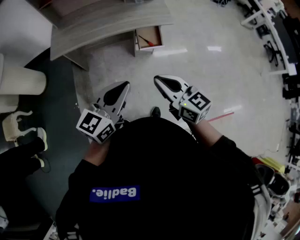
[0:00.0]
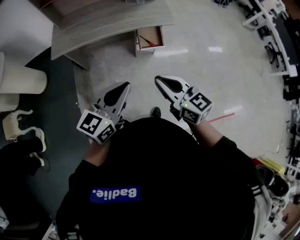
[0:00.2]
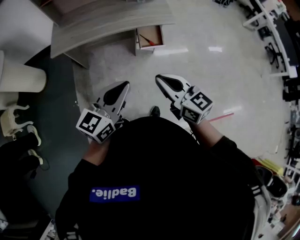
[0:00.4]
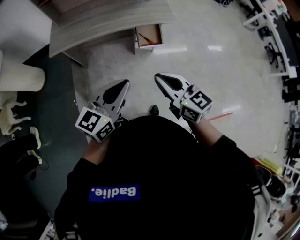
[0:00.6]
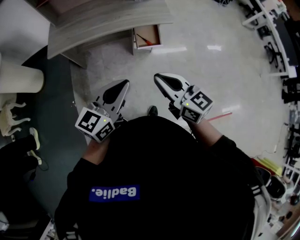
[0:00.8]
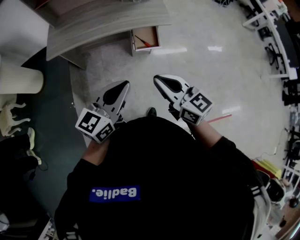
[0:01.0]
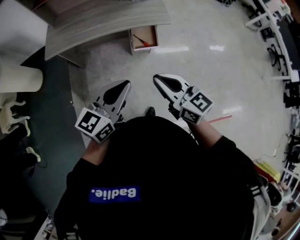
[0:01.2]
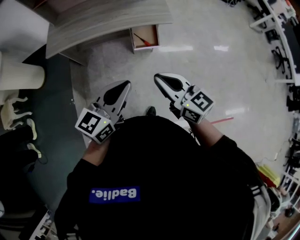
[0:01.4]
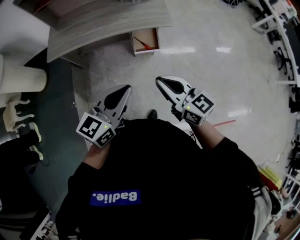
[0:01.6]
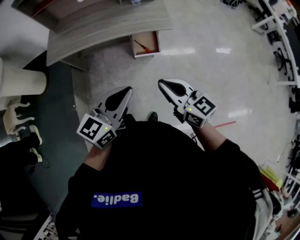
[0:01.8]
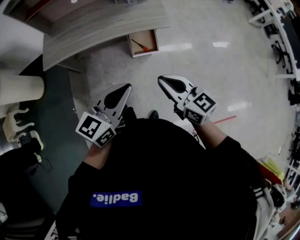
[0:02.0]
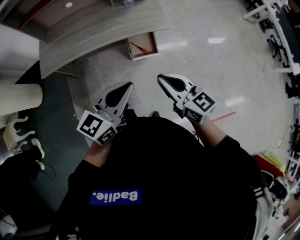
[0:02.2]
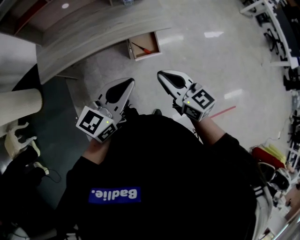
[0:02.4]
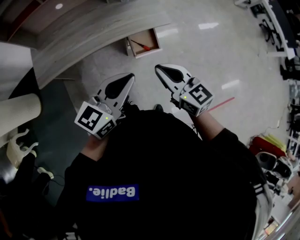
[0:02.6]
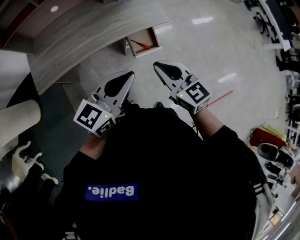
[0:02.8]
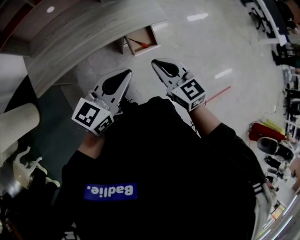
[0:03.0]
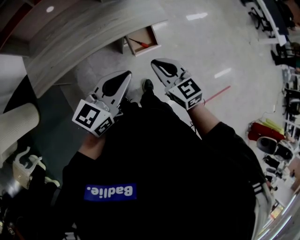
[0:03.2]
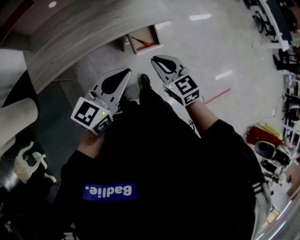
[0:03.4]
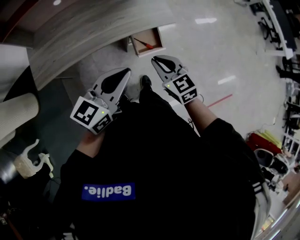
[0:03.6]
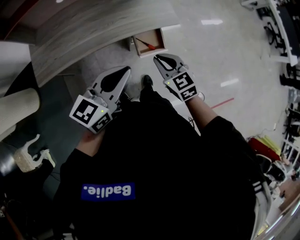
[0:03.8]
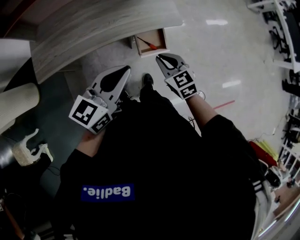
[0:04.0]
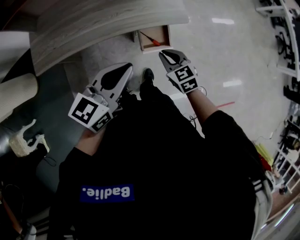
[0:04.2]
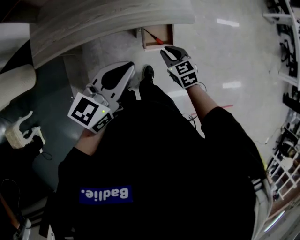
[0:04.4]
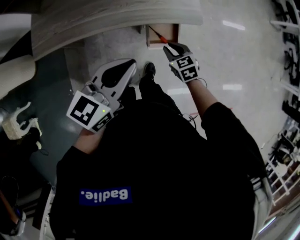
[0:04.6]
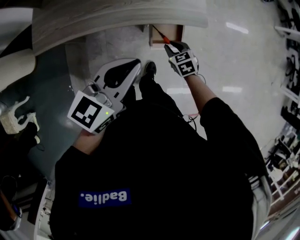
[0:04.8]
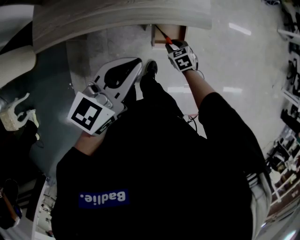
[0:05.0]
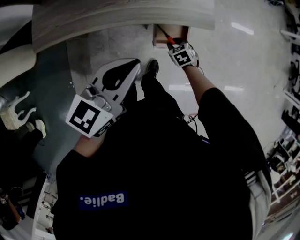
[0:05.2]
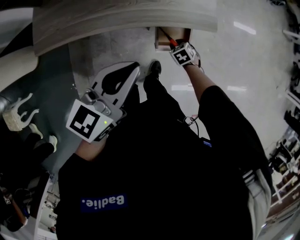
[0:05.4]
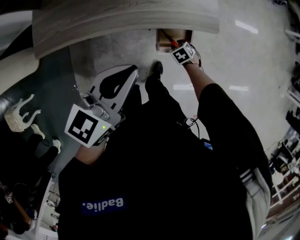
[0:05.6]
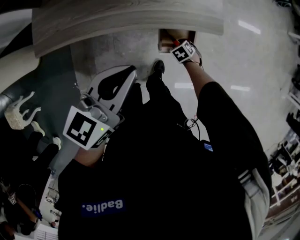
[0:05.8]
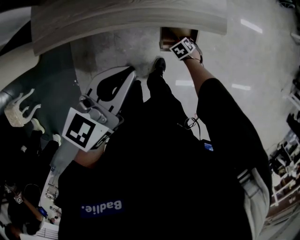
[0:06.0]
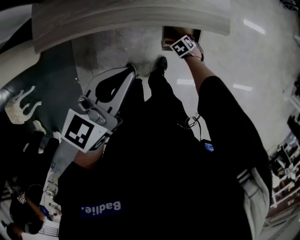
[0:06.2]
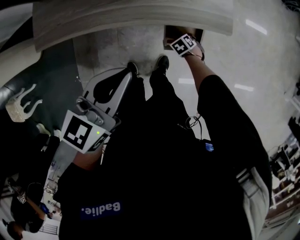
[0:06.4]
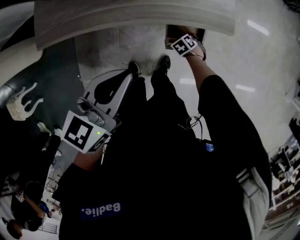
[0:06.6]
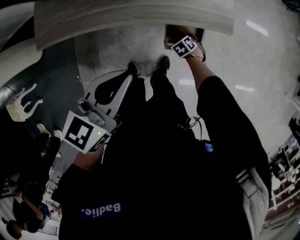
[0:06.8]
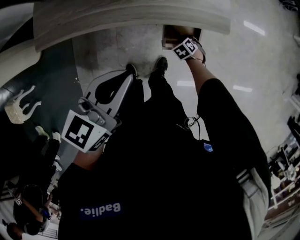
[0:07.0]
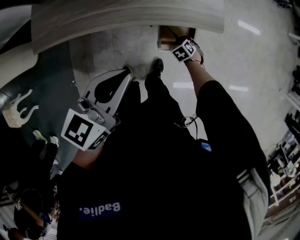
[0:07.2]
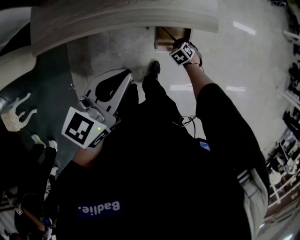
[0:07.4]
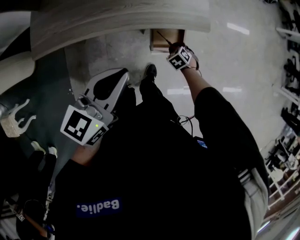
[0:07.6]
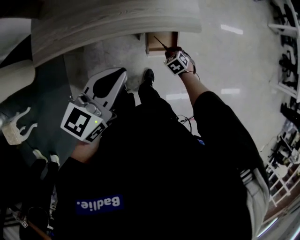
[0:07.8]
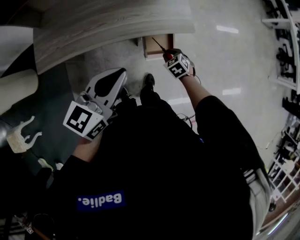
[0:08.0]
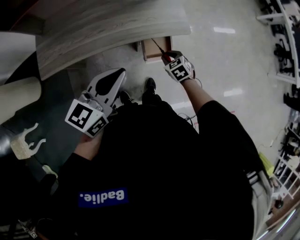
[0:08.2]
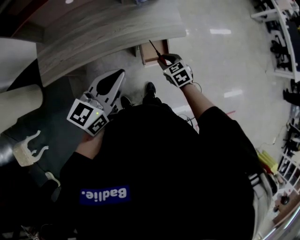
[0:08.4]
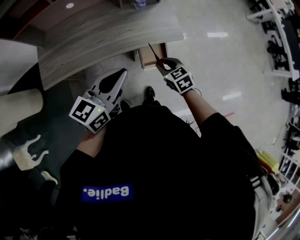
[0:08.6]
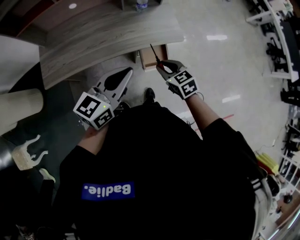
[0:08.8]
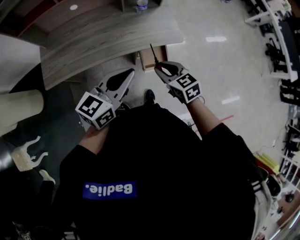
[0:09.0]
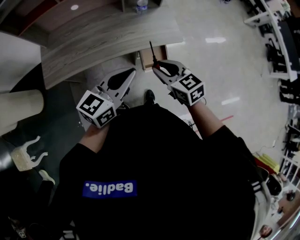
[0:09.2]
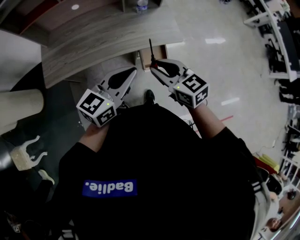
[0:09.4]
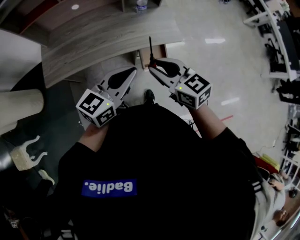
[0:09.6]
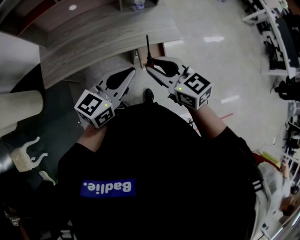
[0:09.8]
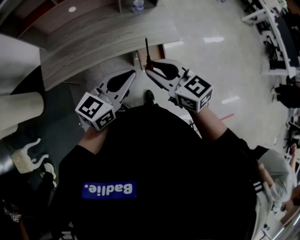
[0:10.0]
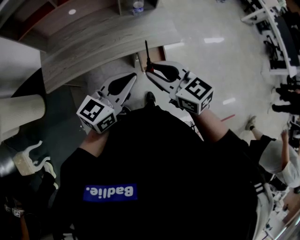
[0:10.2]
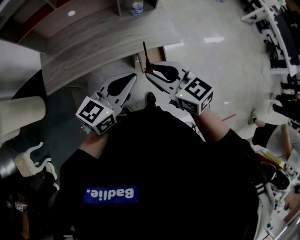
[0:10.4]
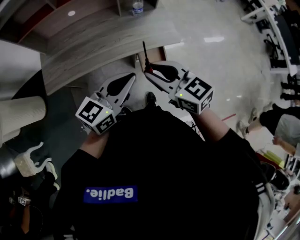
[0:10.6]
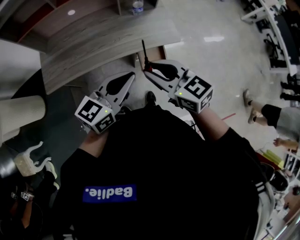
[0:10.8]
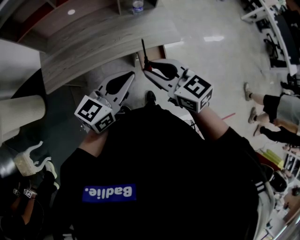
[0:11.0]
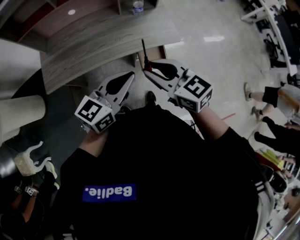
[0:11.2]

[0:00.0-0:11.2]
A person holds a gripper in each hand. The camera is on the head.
0:00.0 to 0:01.6: The two grippers go about 10 cm to the right and forward.
0:01.6 to 0:03.2: The left gripper is displaced to the left and forward by roughly 20 cm, and swivels about 20 degrees. Meanwhile the right gripper is displaced to the left, forward and downward by about 20 cm, and swivels some 30 degrees.
0:03.2 to 0:04.8: The right gripper moves downward and forward, some 30 cm, and turns by approximately 30 degrees, while the left gripper moves forward, approximately 10 cm.
0:04.8 to 0:06.4: The left gripper moves approximately 5 cm. Meanwhile the right gripper is displaced downward by some 20 cm, and turns by roughly 30 degrees.
0:06.4 to 0:08.0: The left gripper shifts roughly 5 cm upward, while the right gripper heads upward, covering about 20 cm, and changes its angle by approximately 20 degrees.
0:08.0 to 0:09.6: The right gripper travels upward by roughly 35 cm, and angles its fingers upward, by approximately 40 degrees.
0:09.6 to 0:11.2: The grippers stay close to where they were, moving slightly.

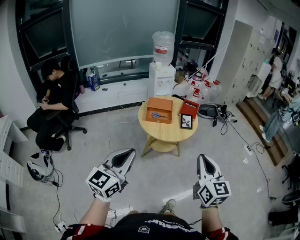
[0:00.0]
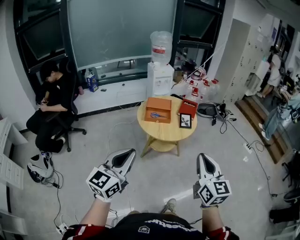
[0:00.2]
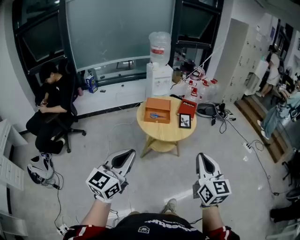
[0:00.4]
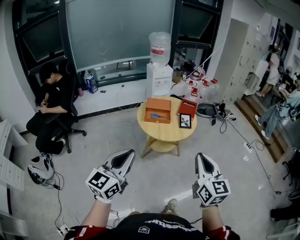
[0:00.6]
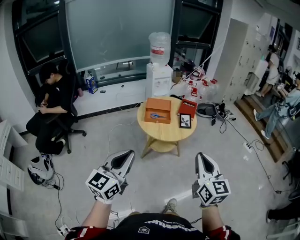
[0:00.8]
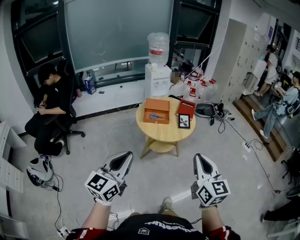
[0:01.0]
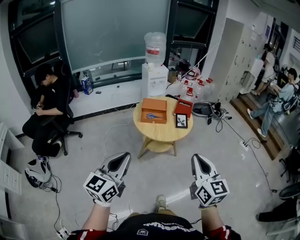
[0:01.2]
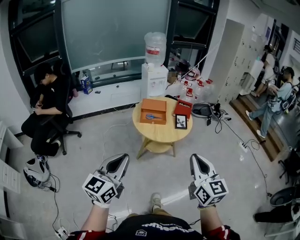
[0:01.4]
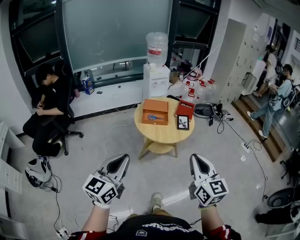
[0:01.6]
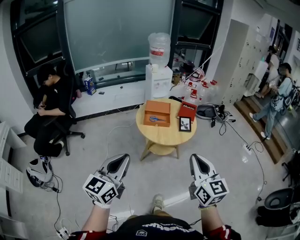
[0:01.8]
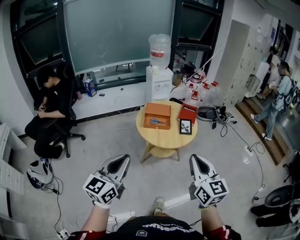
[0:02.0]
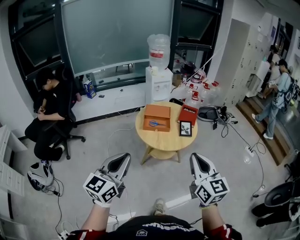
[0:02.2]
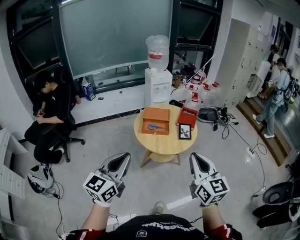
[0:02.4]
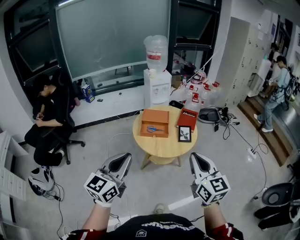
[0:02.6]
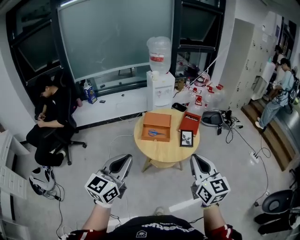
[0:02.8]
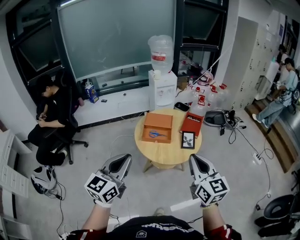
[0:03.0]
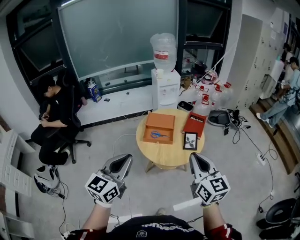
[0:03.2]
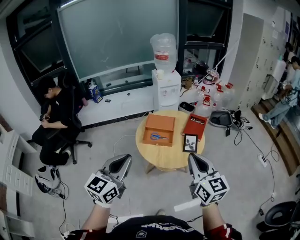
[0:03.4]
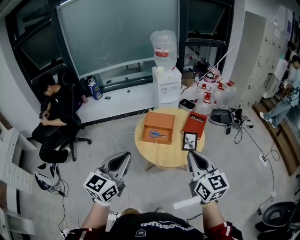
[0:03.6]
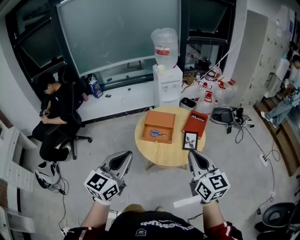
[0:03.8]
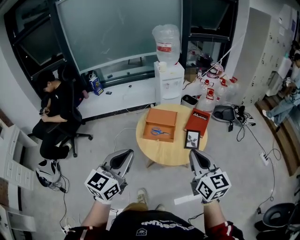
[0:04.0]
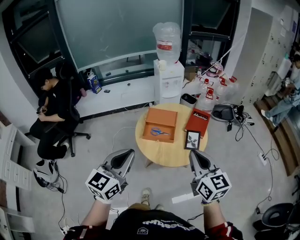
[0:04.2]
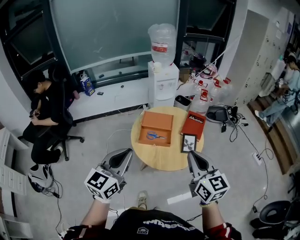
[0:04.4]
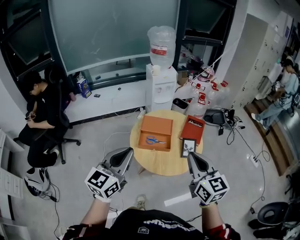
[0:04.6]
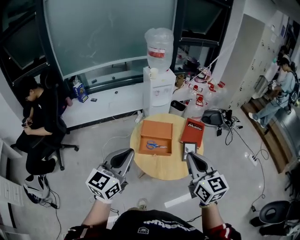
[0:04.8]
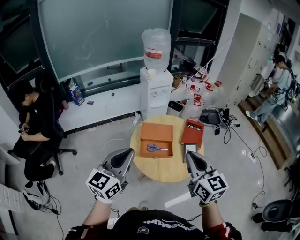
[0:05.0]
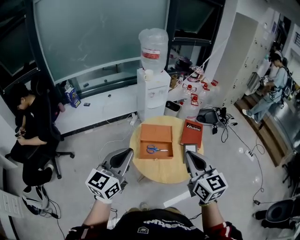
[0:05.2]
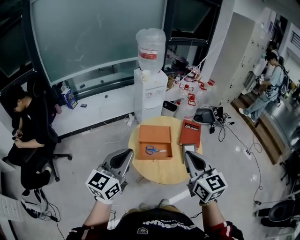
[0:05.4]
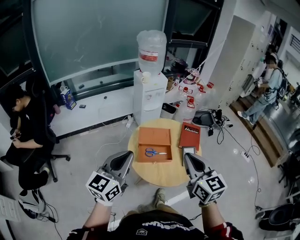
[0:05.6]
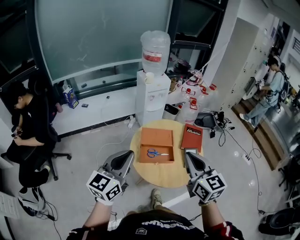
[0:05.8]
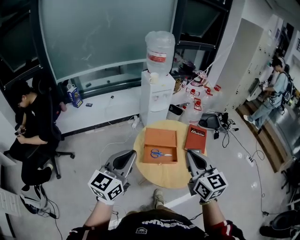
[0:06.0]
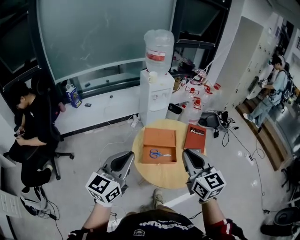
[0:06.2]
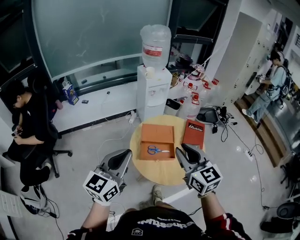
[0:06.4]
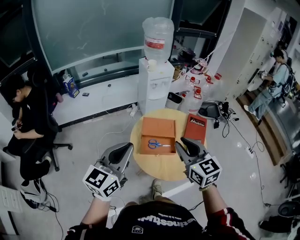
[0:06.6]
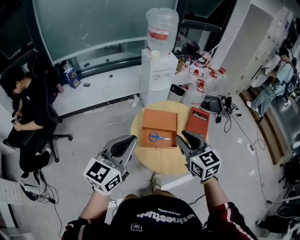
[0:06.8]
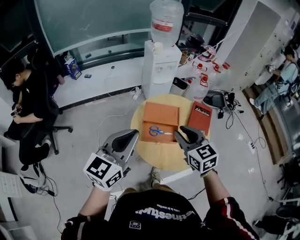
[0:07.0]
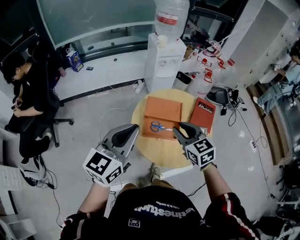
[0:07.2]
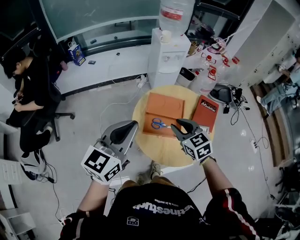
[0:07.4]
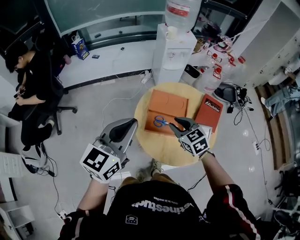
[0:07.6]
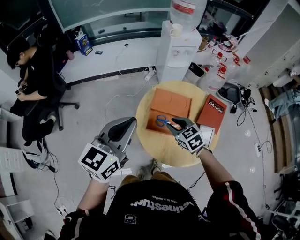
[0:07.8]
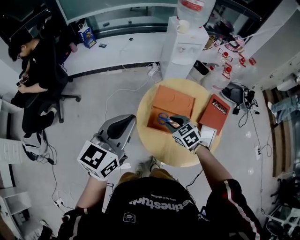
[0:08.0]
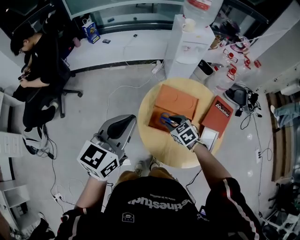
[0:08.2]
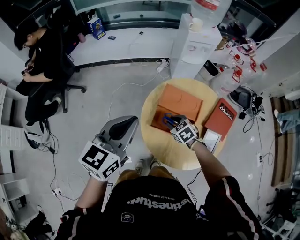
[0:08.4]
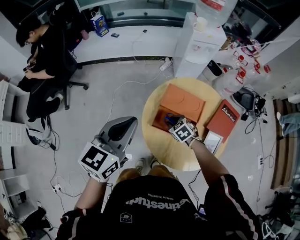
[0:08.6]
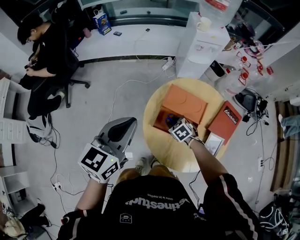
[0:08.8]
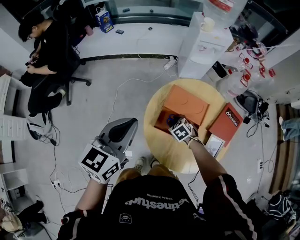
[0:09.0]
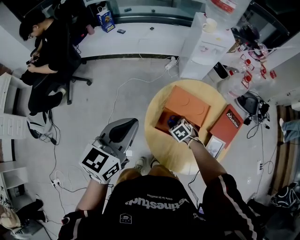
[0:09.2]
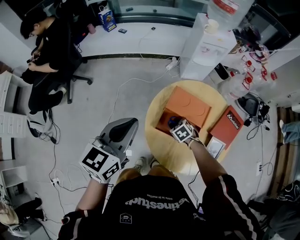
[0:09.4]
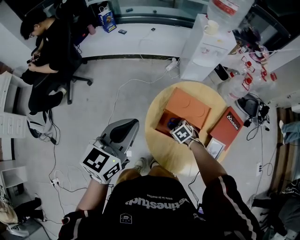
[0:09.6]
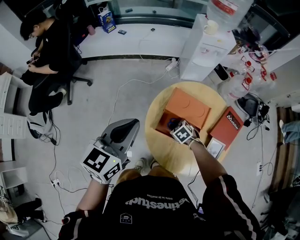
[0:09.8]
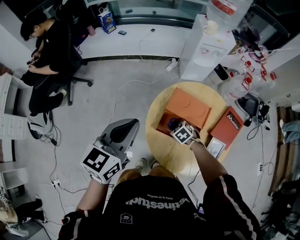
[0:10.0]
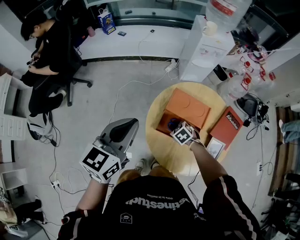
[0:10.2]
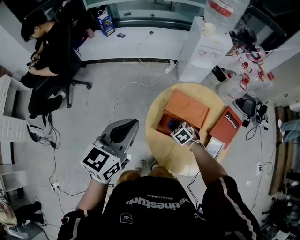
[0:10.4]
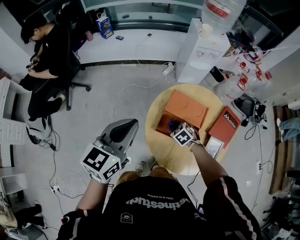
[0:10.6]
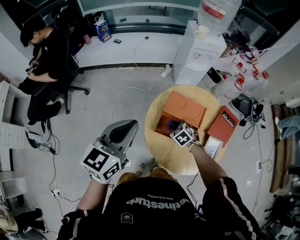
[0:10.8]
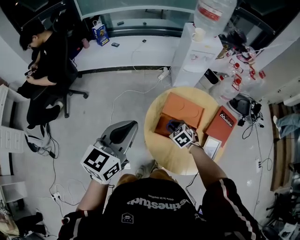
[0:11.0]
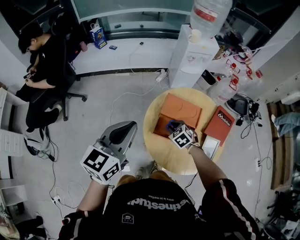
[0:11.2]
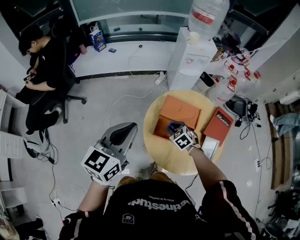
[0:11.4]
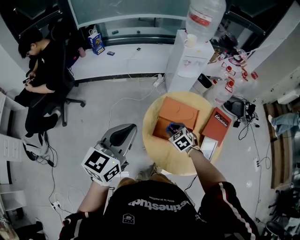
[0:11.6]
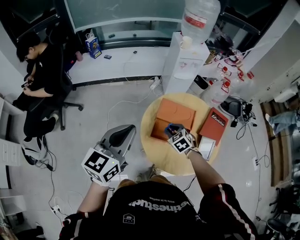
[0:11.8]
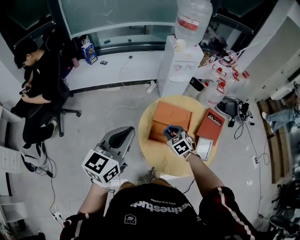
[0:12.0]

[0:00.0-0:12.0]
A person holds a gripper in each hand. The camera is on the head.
0:00.0 to 0:01.6: The grippers make only small movements.
0:01.6 to 0:03.0: Both grippers travel together forward, some 20 cm.
0:03.0 to 0:04.4: The two grippers go approximately 10 cm forward.
0:04.4 to 0:06.0: The right gripper is displaced to the left and forward by about 15 cm; the left gripper heads forward and to the left, covering roughly 15 cm.
0:06.0 to 0:07.6: The left gripper is displaced forward by about 5 cm. The right gripper travels downward and forward by approximately 25 cm, angles its fingers downward, by roughly 30 degrees, and opens up.
0:07.6 to 0:09.0: The left gripper goes approximately 5 cm downward, while the right gripper goes some 20 cm downward, and swivels roughly 30 degrees.
0:09.0 to 0:10.4: There are only small adjustments of the grippers.
0:10.4 to 0:12.0: The left gripper ends up roughly 5 cm from where it was, while the right gripper moves upward, roughly 15 cm, and changes its angle by about 20 degrees.
